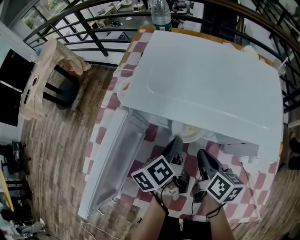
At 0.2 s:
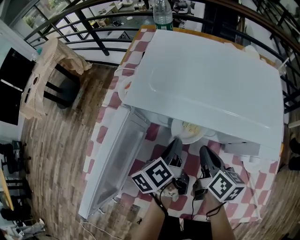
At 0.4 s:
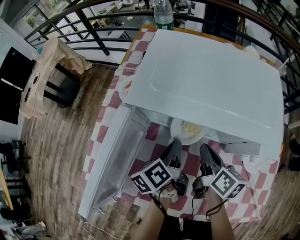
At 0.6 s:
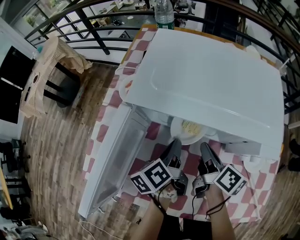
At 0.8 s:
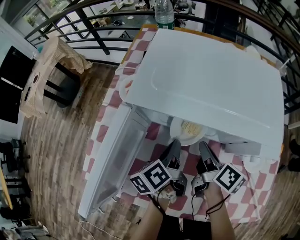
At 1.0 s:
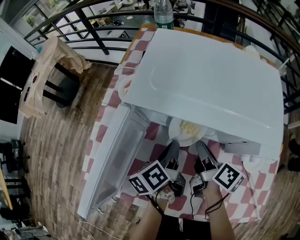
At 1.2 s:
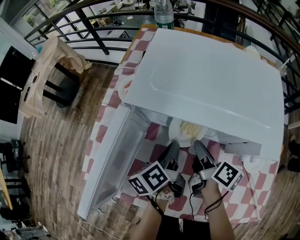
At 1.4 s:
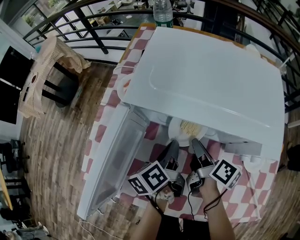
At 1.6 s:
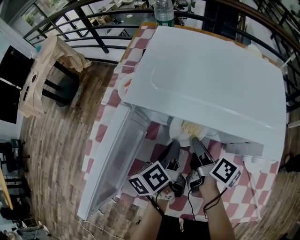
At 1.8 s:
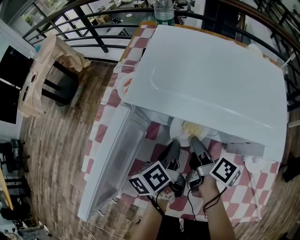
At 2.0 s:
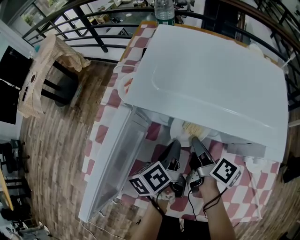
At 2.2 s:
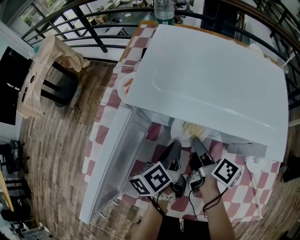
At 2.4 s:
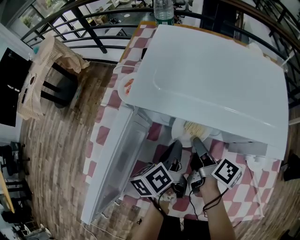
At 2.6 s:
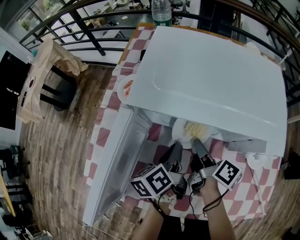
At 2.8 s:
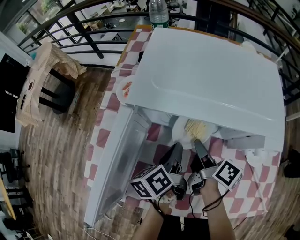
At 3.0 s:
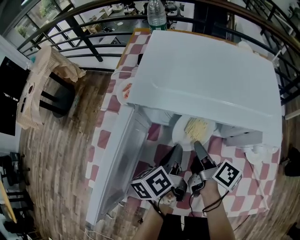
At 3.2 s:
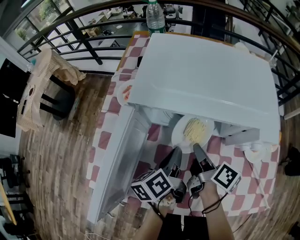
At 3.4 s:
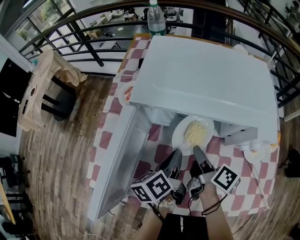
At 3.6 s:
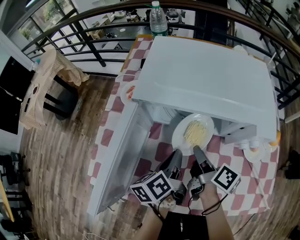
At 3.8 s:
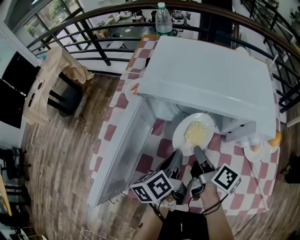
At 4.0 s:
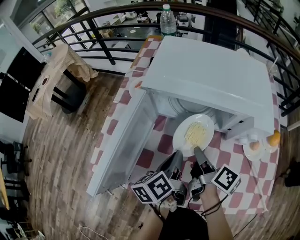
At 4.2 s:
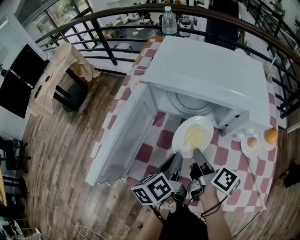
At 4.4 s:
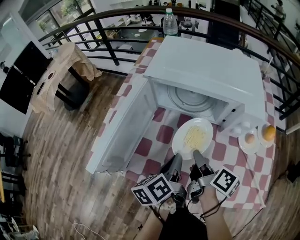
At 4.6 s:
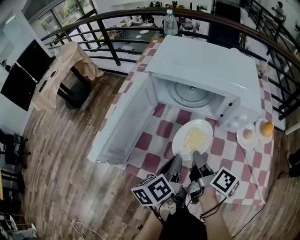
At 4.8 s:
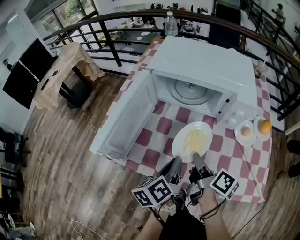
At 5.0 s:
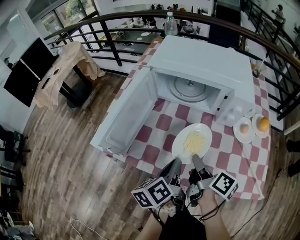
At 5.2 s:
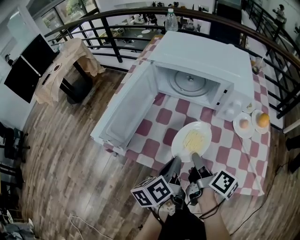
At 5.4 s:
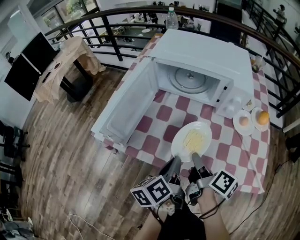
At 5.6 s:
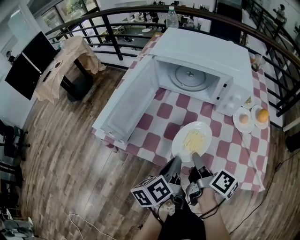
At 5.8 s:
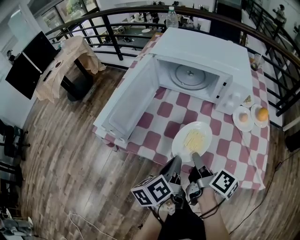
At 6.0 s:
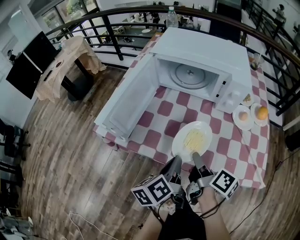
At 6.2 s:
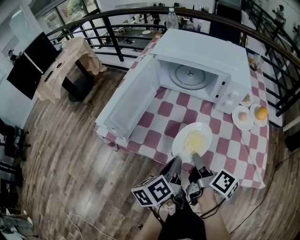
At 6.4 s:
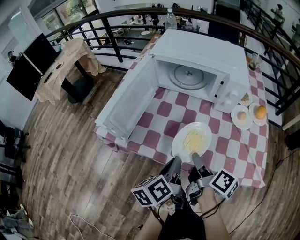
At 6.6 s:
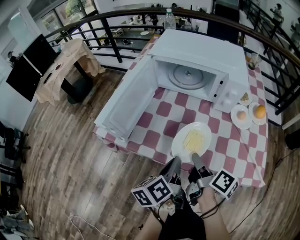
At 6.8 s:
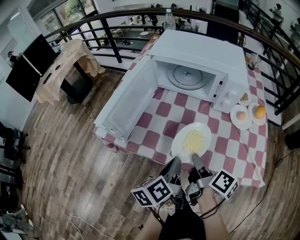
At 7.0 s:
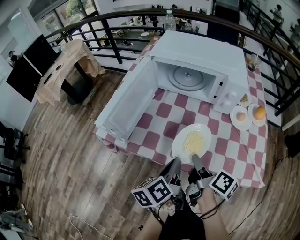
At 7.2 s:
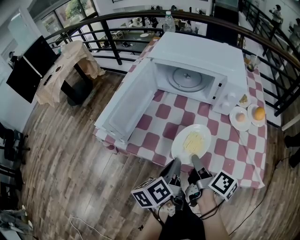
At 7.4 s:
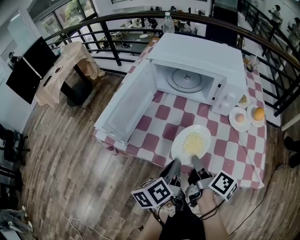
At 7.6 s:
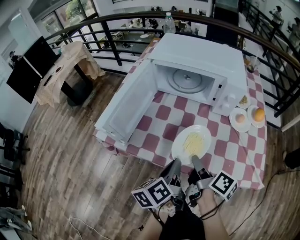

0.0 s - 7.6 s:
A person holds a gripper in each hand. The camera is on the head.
0.0 s - 1.6 s: The right gripper turns by some 30 degrees.
1.6 s - 3.0 s: The grippers stay close to where they were, moving slightly.
3.0 s - 4.6 s: The grippers both shift backward by roughly 15 cm.
4.6 s - 6.0 s: The grippers both shift backward by about 10 cm.
6.0 s - 7.6 s: The two grippers keep their place.

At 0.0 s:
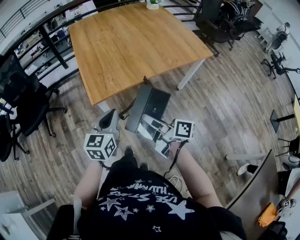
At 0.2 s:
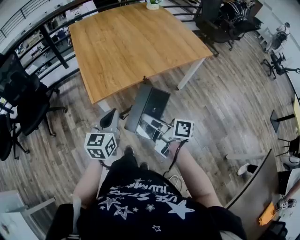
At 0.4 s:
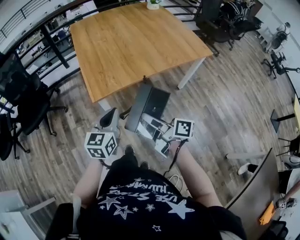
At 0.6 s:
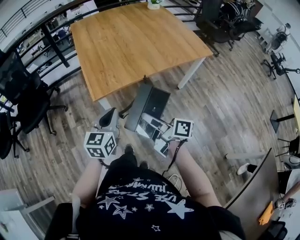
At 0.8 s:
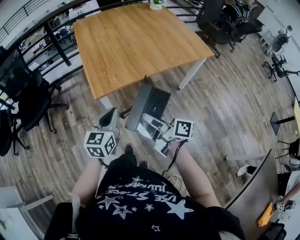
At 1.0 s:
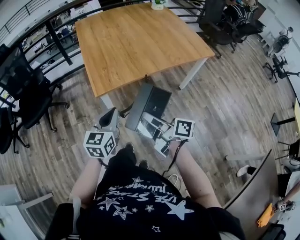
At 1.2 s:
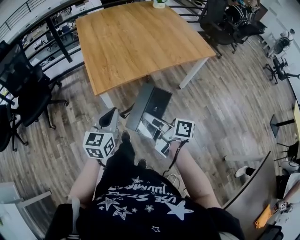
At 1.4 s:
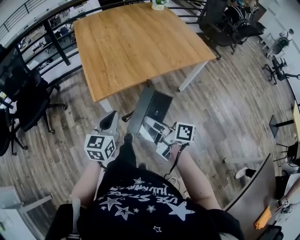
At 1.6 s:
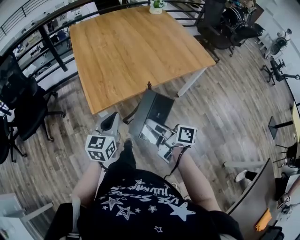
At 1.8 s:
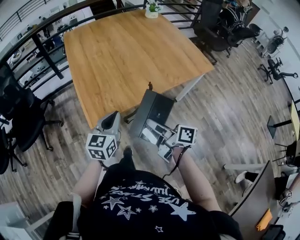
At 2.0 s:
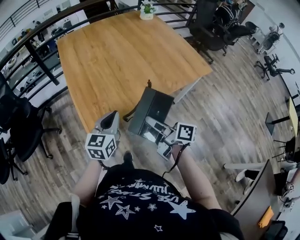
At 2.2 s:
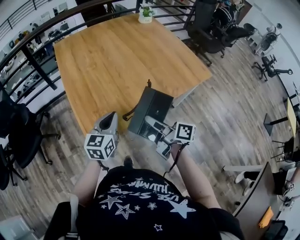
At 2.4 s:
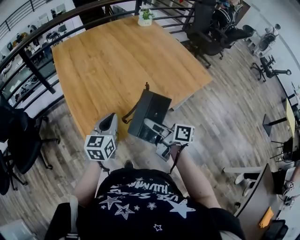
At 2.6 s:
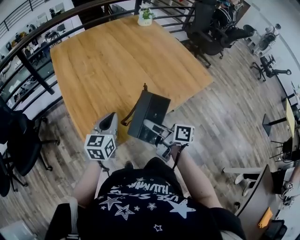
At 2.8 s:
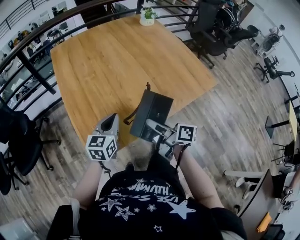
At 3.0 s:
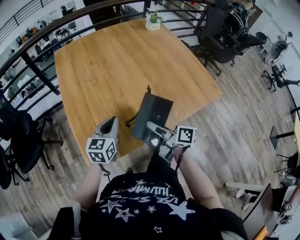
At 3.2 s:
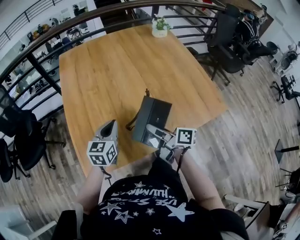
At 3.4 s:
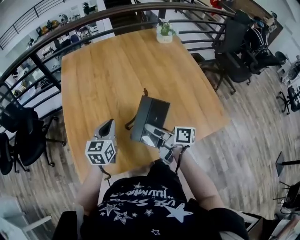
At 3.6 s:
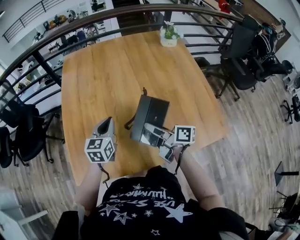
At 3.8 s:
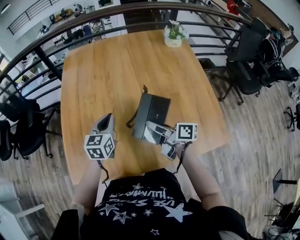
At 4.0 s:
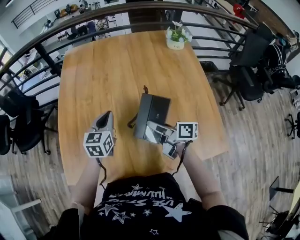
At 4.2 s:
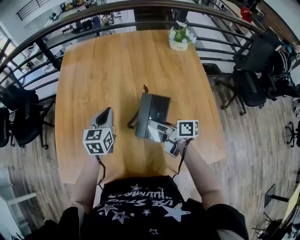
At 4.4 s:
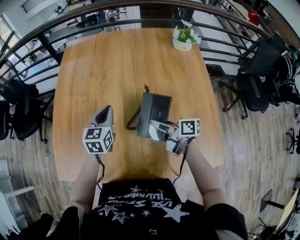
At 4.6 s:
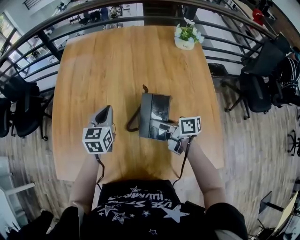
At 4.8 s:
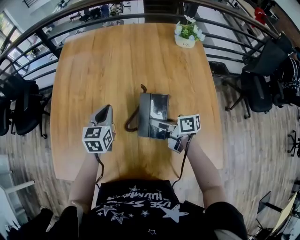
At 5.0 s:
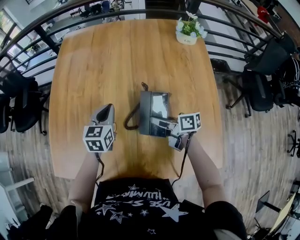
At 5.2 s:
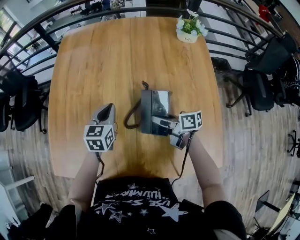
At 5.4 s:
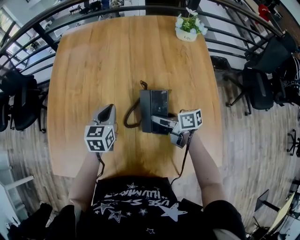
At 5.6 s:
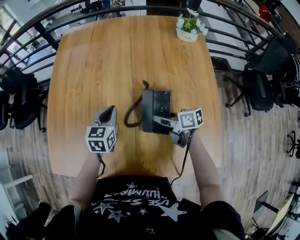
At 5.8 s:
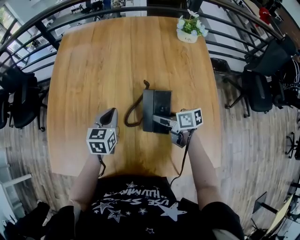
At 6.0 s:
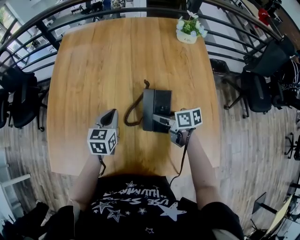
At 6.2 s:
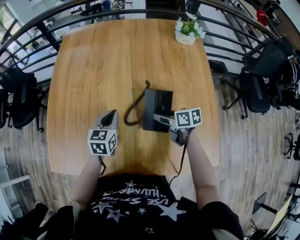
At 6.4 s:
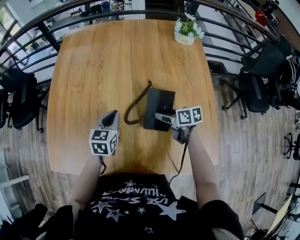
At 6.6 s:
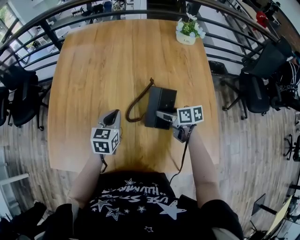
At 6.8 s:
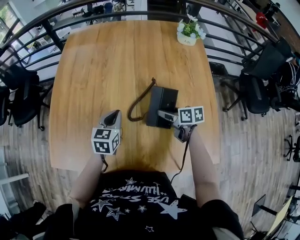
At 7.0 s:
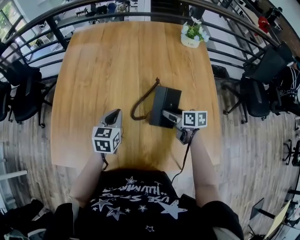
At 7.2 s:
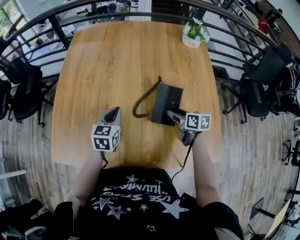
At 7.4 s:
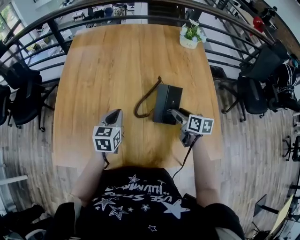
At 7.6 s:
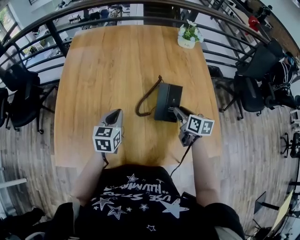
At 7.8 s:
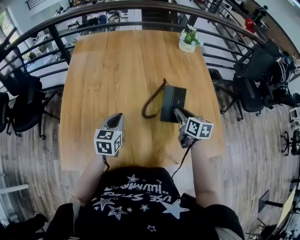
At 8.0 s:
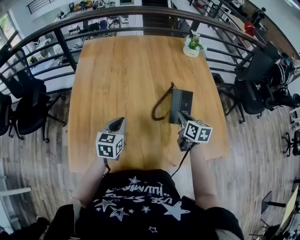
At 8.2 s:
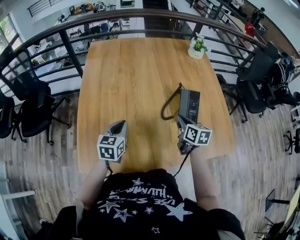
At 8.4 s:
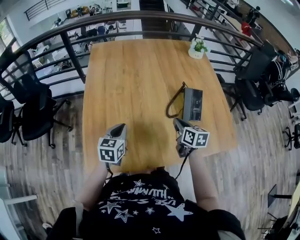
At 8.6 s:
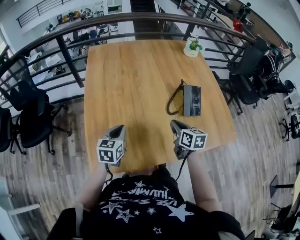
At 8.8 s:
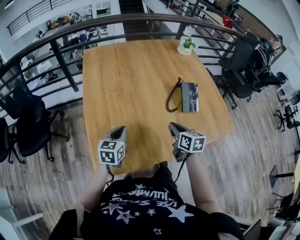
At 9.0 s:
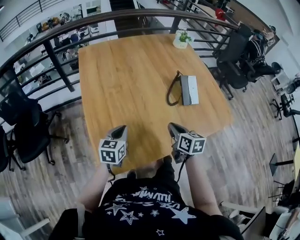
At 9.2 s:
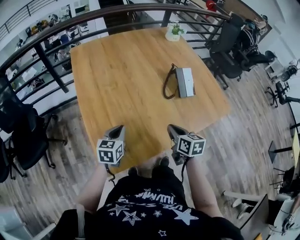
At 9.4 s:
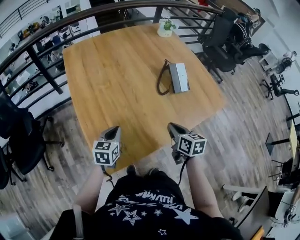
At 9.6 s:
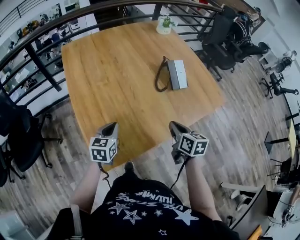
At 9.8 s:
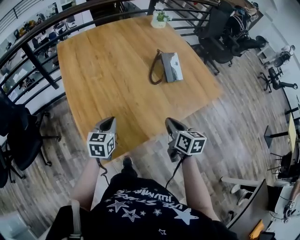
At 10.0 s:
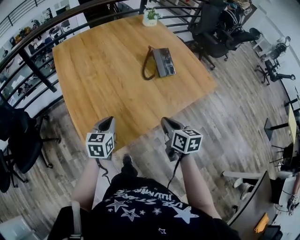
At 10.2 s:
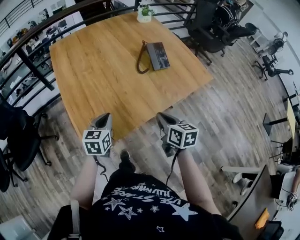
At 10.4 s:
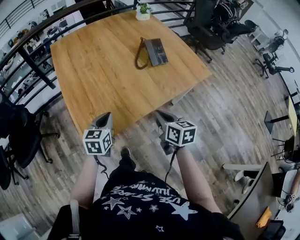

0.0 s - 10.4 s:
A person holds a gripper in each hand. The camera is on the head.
0.0 s - 1.4 s: There are only small adjustments of the grippers.
1.4 s - 3.0 s: Both grippers move forward, roughly 35 cm.
3.0 s - 4.4 s: The right gripper ends up some 30 cm from where it was, and changes its angle by approximately 30 degrees; the left gripper ends up roughly 25 cm from where it was, and changes its angle by approximately 30 degrees.
4.4 s - 6.0 s: Both grippers travel together downward, approximately 5 cm. The right gripper turns by some 20 degrees.
6.0 s - 7.4 s: The right gripper is displaced to the right by roughly 5 cm, and swivels approximately 30 degrees. The left gripper shifts by about 5 cm.
7.4 s - 9.0 s: The two grippers go some 30 cm to the left and backward. The right gripper turns by about 20 degrees, and closes up, while the left gripper turns by approximately 20 degrees.
9.0 s - 10.4 s: The right gripper is displaced backward by some 15 cm. Meanwhile the left gripper moves backward and to the right, some 15 cm.

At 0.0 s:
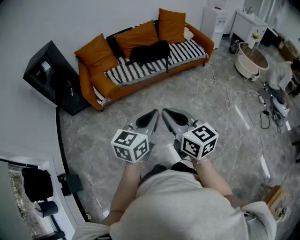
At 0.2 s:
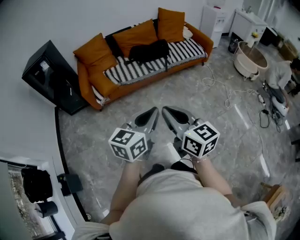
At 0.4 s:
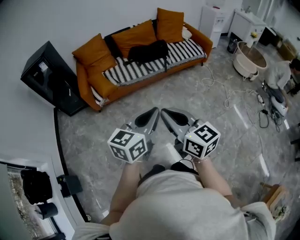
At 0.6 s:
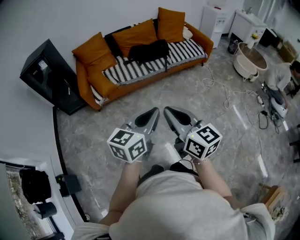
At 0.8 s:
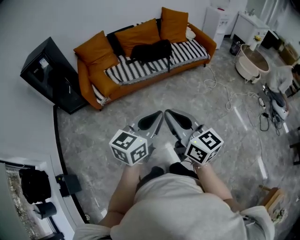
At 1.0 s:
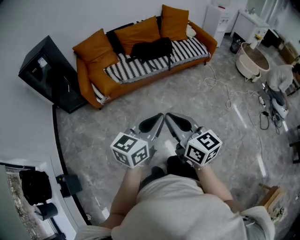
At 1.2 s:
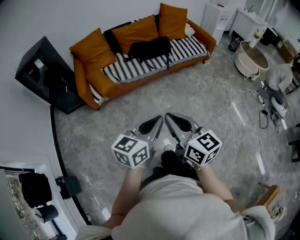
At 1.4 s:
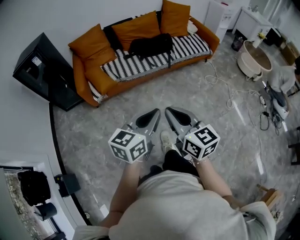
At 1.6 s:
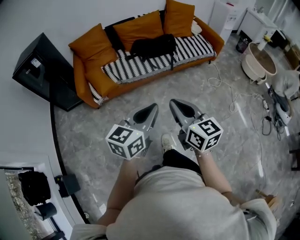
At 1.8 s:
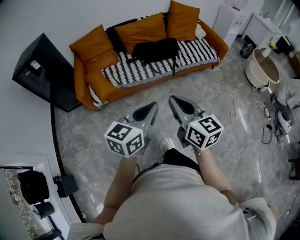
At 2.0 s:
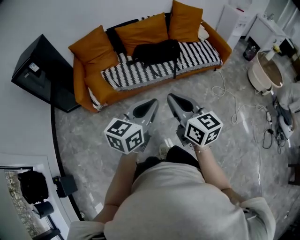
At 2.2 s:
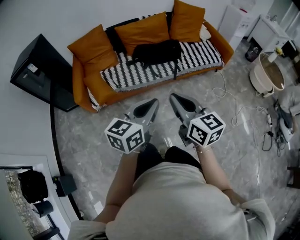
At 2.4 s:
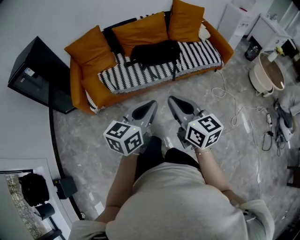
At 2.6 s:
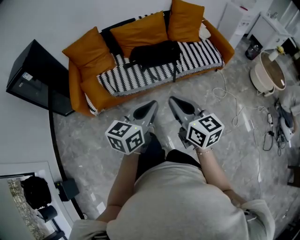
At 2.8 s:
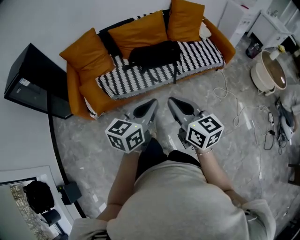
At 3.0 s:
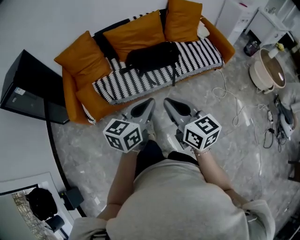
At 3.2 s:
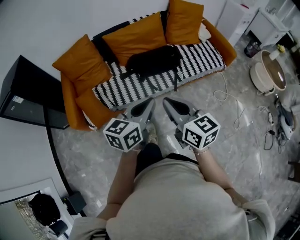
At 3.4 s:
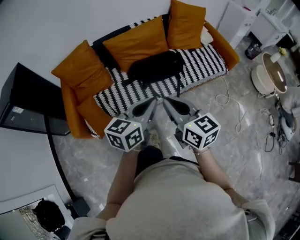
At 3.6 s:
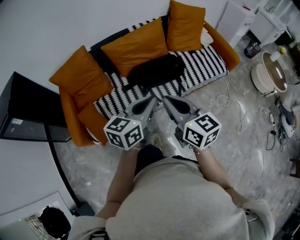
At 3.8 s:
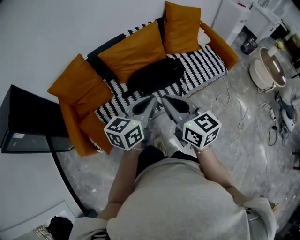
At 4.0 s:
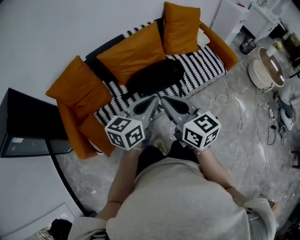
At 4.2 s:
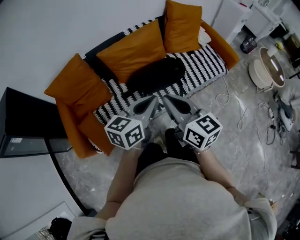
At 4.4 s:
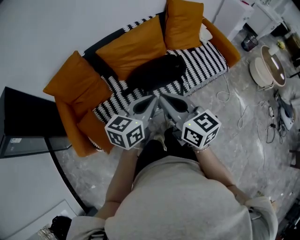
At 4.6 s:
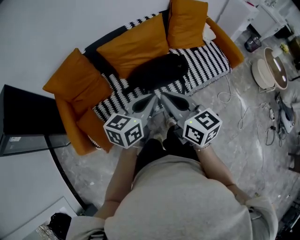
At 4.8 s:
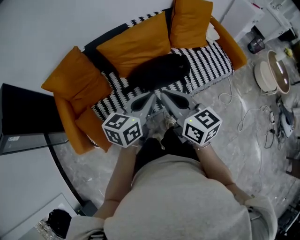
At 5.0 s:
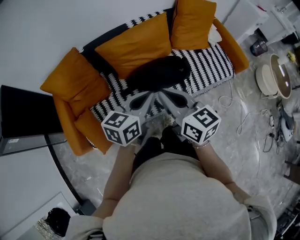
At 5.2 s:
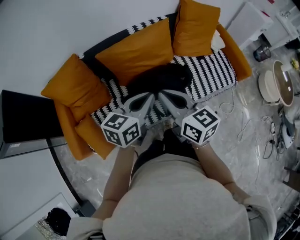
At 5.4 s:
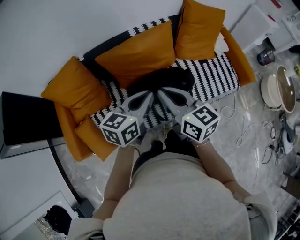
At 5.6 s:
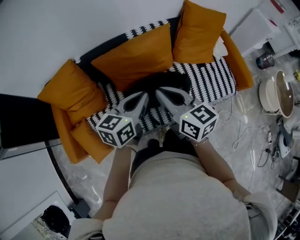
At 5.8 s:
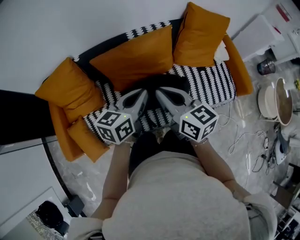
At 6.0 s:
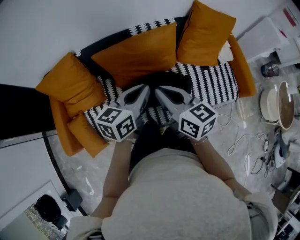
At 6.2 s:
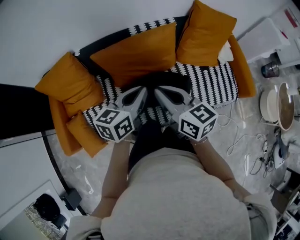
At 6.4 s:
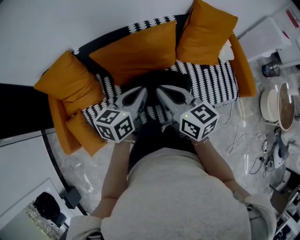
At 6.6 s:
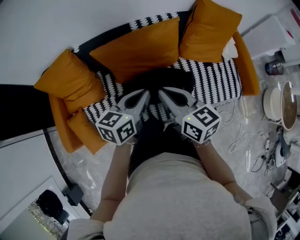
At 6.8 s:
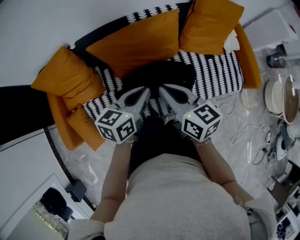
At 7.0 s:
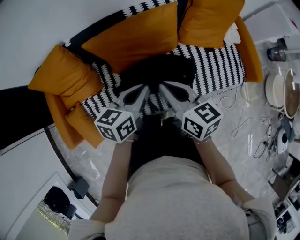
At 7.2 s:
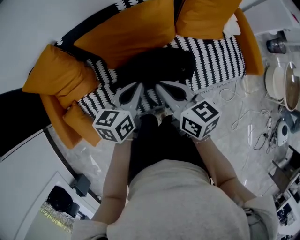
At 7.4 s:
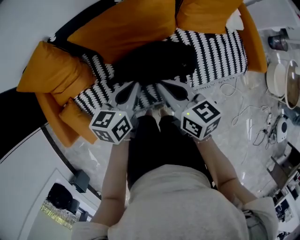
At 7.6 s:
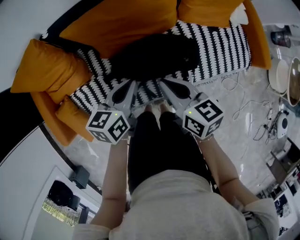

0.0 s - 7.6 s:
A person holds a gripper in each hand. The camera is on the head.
0.0 s - 1.6 s: The grippers both shift forward by approximately 15 cm.
1.6 s - 3.0 s: The two grippers go roughly 30 cm forward.
3.0 s - 4.6 s: The two grippers go some 30 cm forward.
4.6 s - 6.0 s: The two grippers go roughly 25 cm forward.
6.0 s - 7.6 s: Both grippers travel together downward, about 15 cm.
